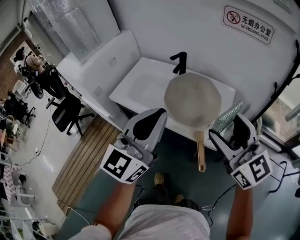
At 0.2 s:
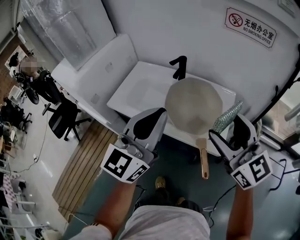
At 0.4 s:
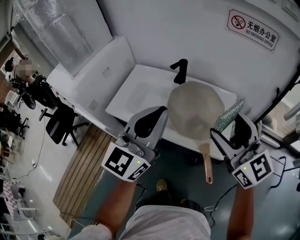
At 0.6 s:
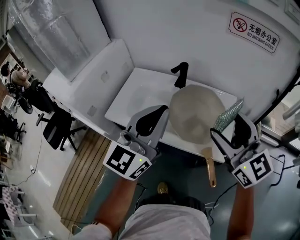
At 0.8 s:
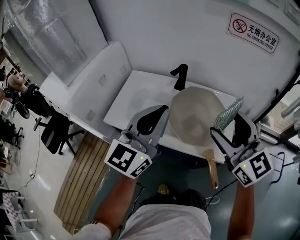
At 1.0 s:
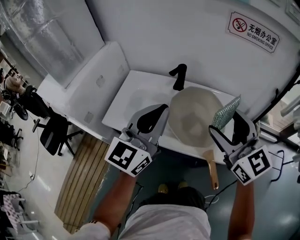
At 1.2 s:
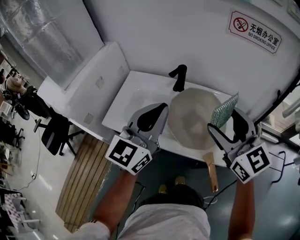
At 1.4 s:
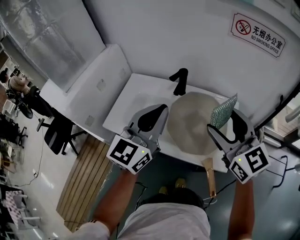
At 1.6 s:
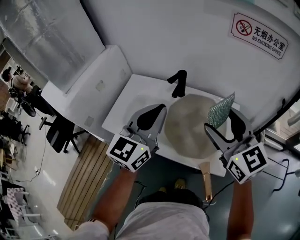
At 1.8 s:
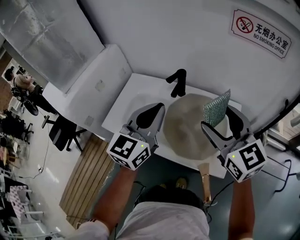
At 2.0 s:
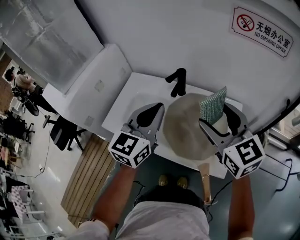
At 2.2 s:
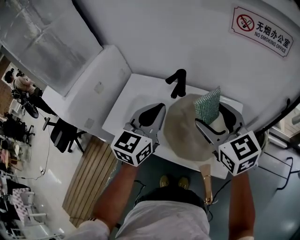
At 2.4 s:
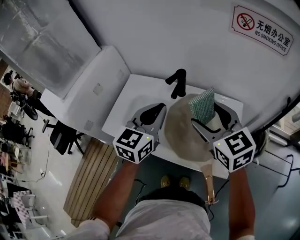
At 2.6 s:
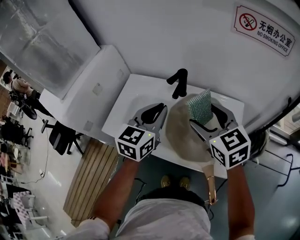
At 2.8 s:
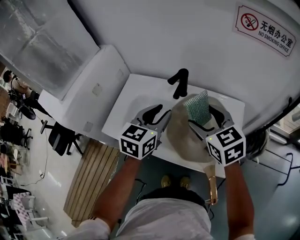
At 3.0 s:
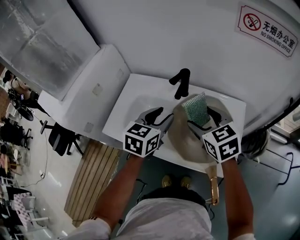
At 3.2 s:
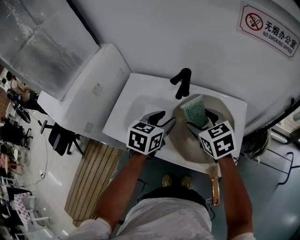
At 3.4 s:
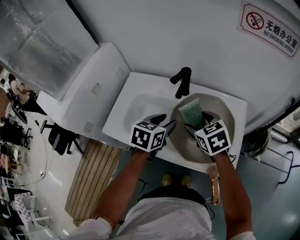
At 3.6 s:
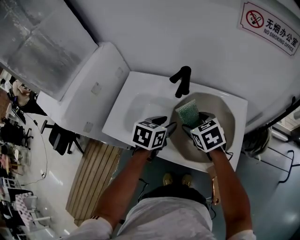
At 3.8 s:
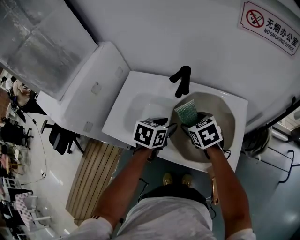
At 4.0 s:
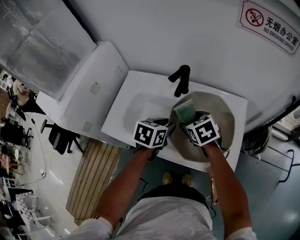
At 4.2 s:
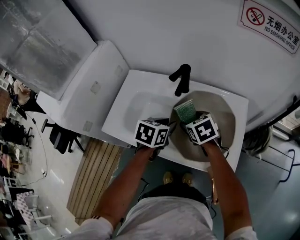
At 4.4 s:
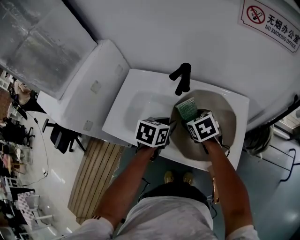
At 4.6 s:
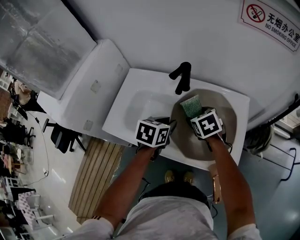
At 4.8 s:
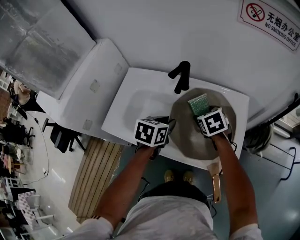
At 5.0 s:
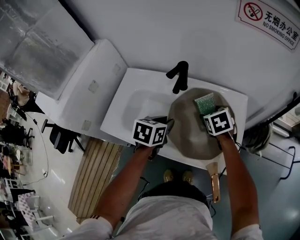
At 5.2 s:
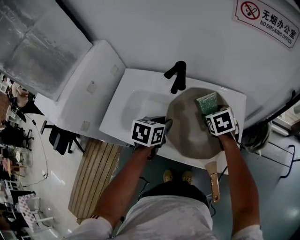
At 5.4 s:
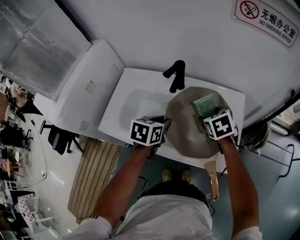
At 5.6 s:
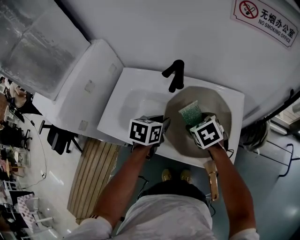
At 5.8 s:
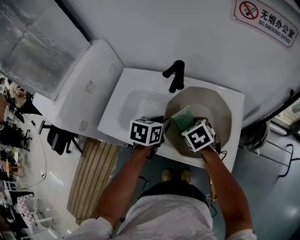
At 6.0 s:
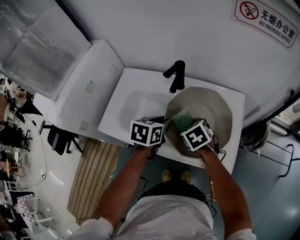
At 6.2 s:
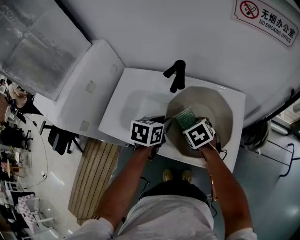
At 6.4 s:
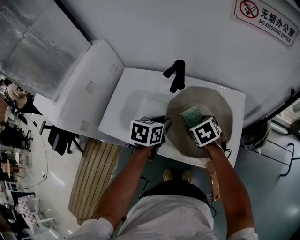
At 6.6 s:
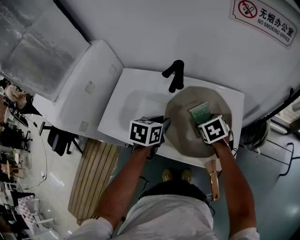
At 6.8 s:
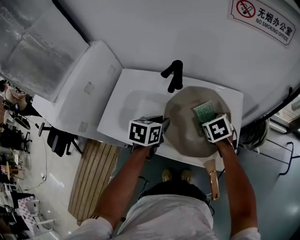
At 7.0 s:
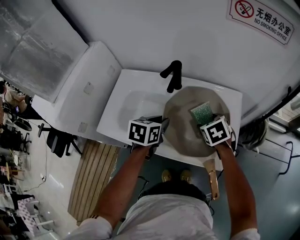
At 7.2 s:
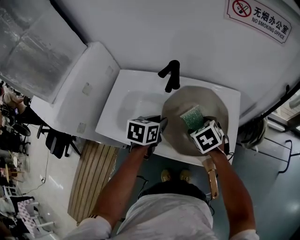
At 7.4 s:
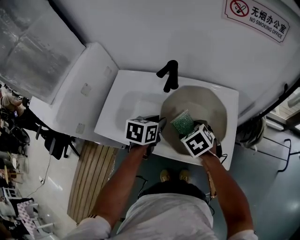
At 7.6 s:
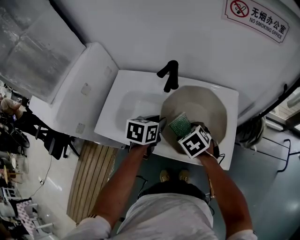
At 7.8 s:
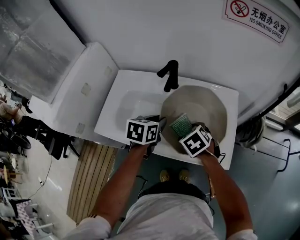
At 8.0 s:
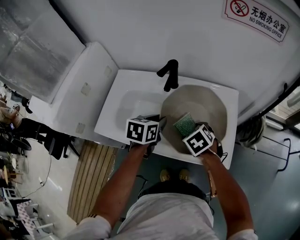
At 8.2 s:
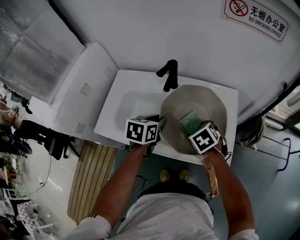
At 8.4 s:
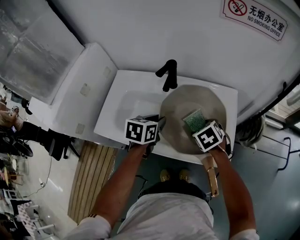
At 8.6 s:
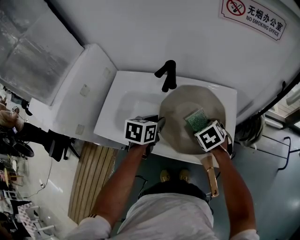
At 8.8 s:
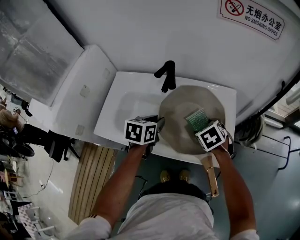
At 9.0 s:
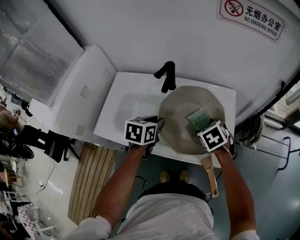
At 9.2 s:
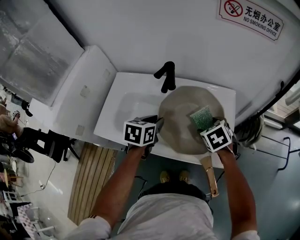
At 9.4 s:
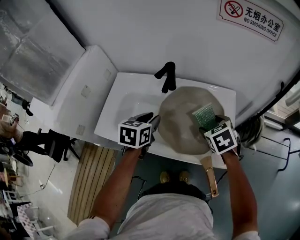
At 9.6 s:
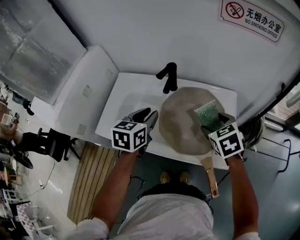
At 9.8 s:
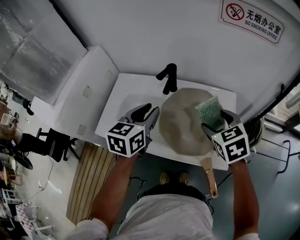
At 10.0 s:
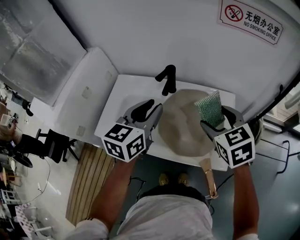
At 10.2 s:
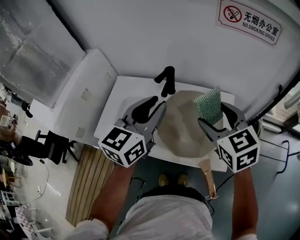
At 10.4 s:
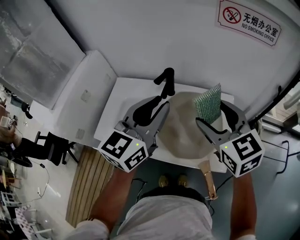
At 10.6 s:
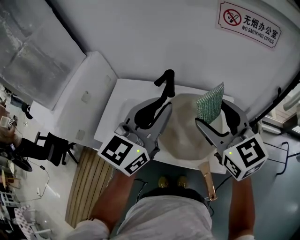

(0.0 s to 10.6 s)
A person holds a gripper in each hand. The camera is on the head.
0.0 s - 1.6 s: The grippers both shift forward by approximately 20 cm.
1.6 s - 3.0 s: The left gripper moves downward and forward, approximately 15 cm, changes its angle by roughly 30 degrees, and opens its fingers; the right gripper travels downward, forward and to the left by roughly 15 cm, and swivels some 30 degrees.
3.0 s - 4.6 s: Both grippers travel together downward, about 10 cm. The left gripper turns by roughly 20 degrees, and closes its fingers. The right gripper turns by about 20 degrees.
4.6 s - 6.0 s: The right gripper travels backward by about 5 cm, and reaches about 10 cm to the right, then returns.
6.0 s - 7.6 s: The right gripper moves approximately 10 cm to the right and comes back.
7.6 s - 9.0 s: The right gripper moves to the right, about 10 cm.
9.0 s - 10.6 s: The two grippers go about 25 cm upward. The left gripper points its fingers some 50 degrees further upward. The right gripper points its fingers about 50 degrees further upward.

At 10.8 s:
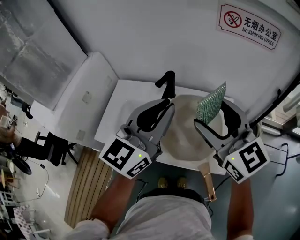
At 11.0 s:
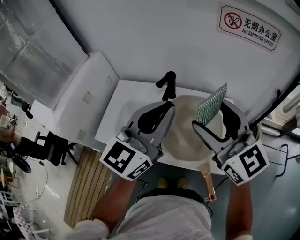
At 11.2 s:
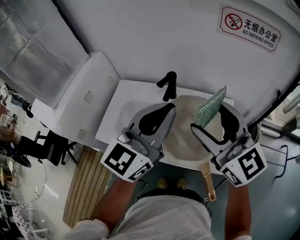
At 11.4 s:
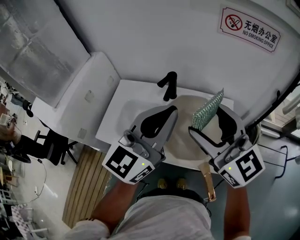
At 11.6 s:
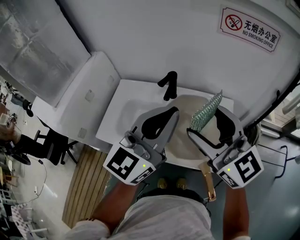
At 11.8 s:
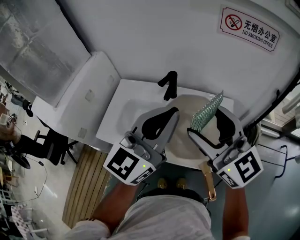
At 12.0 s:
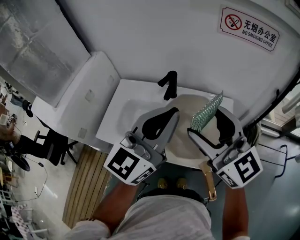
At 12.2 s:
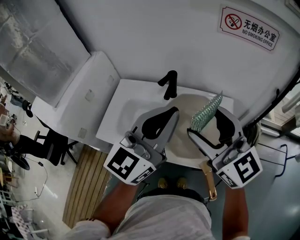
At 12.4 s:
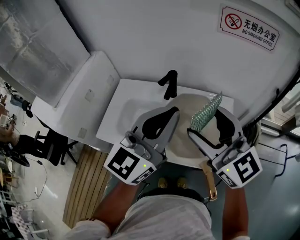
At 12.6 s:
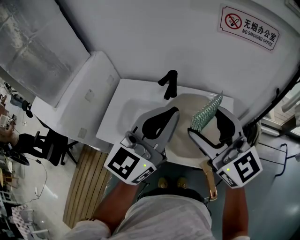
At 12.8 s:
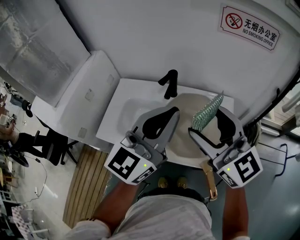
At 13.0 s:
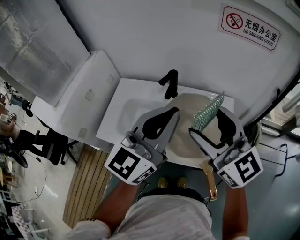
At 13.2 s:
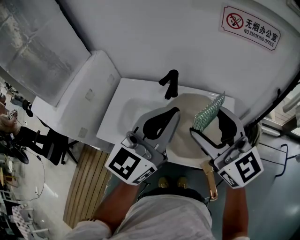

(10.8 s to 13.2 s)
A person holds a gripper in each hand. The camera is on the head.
10.8 s - 12.0 s: The grippers make only small movements.
12.0 s - 13.2 s: Neither gripper changes place.

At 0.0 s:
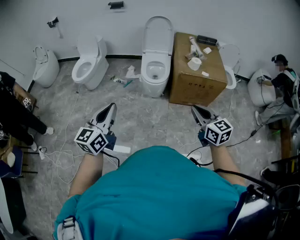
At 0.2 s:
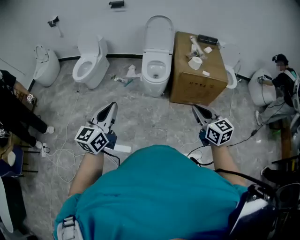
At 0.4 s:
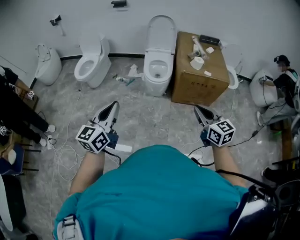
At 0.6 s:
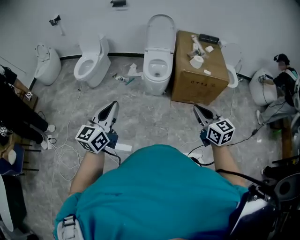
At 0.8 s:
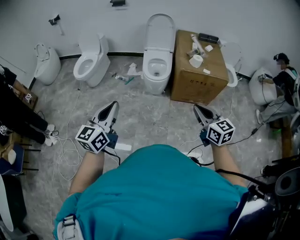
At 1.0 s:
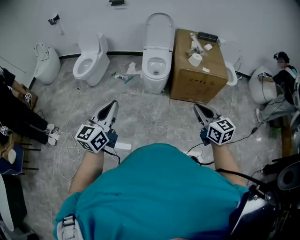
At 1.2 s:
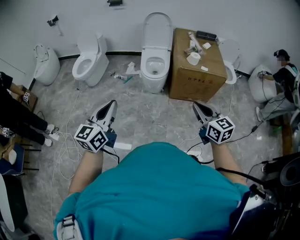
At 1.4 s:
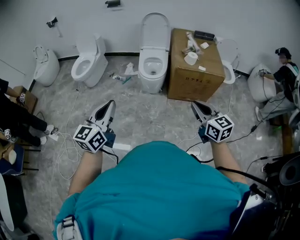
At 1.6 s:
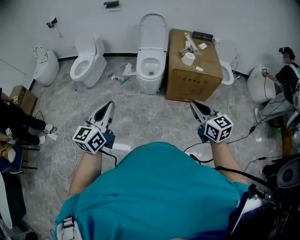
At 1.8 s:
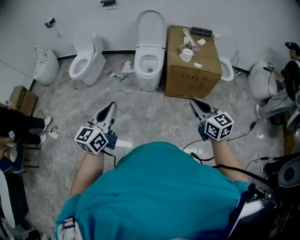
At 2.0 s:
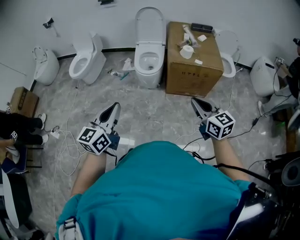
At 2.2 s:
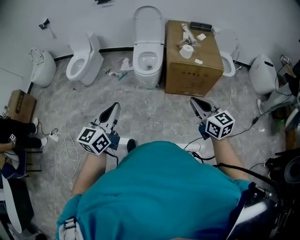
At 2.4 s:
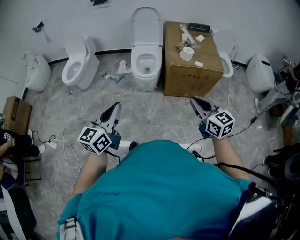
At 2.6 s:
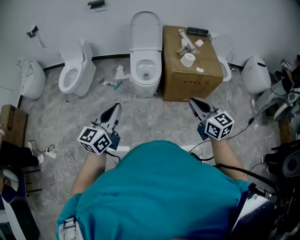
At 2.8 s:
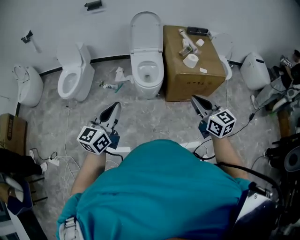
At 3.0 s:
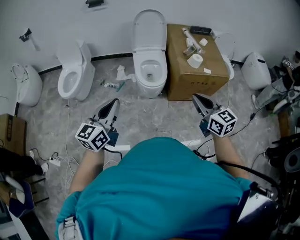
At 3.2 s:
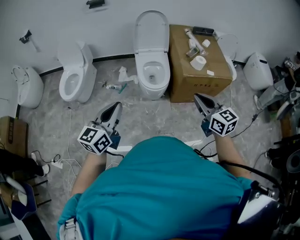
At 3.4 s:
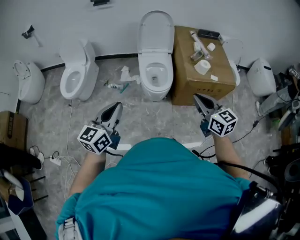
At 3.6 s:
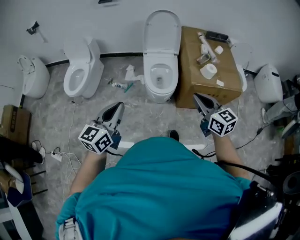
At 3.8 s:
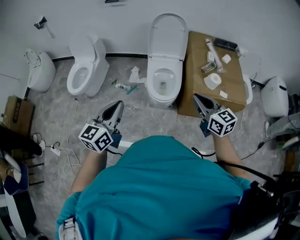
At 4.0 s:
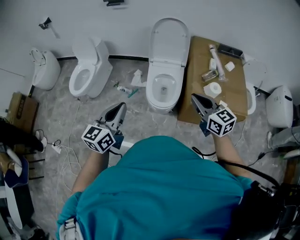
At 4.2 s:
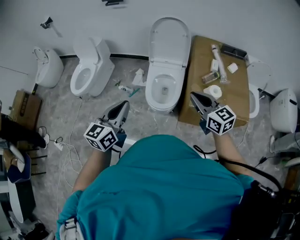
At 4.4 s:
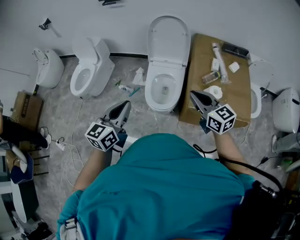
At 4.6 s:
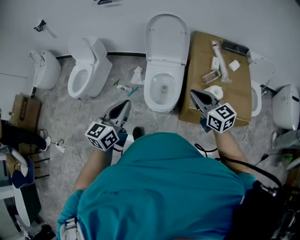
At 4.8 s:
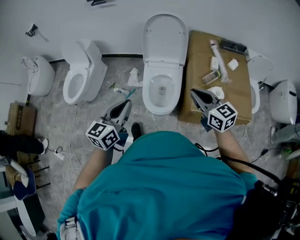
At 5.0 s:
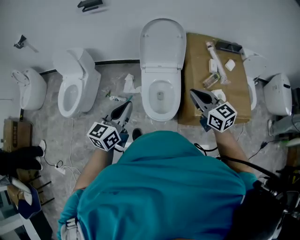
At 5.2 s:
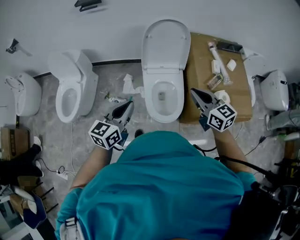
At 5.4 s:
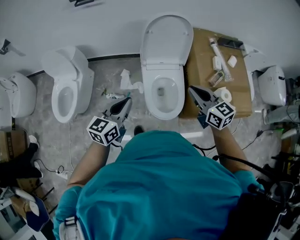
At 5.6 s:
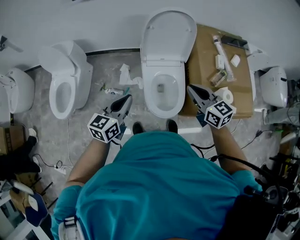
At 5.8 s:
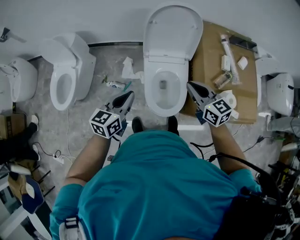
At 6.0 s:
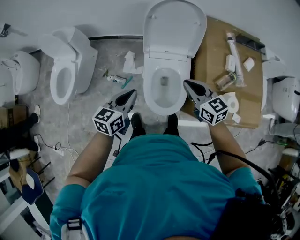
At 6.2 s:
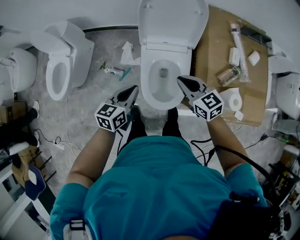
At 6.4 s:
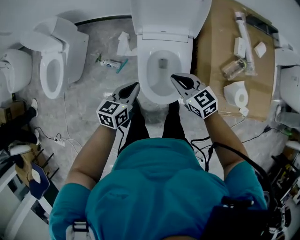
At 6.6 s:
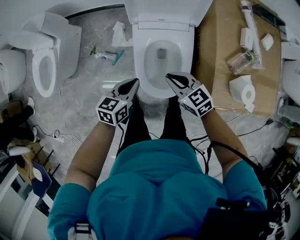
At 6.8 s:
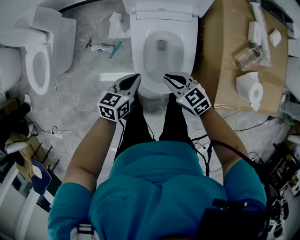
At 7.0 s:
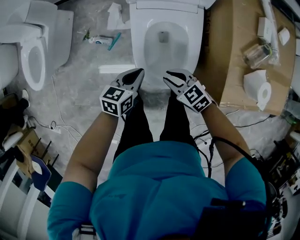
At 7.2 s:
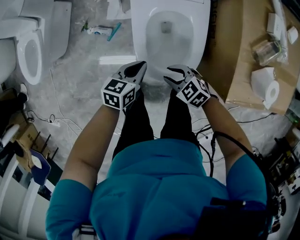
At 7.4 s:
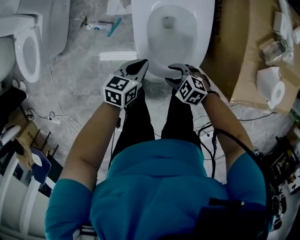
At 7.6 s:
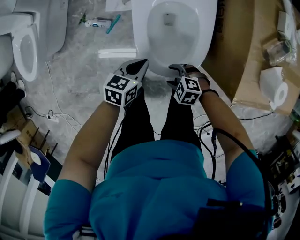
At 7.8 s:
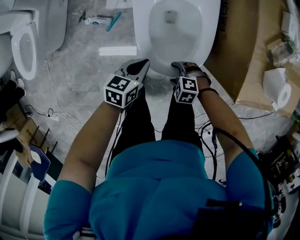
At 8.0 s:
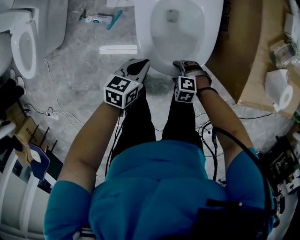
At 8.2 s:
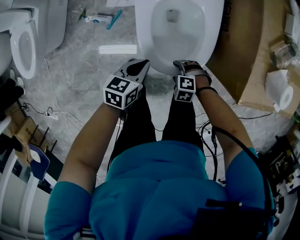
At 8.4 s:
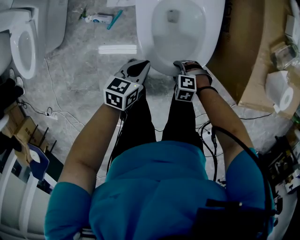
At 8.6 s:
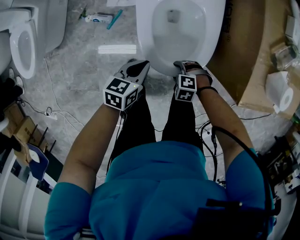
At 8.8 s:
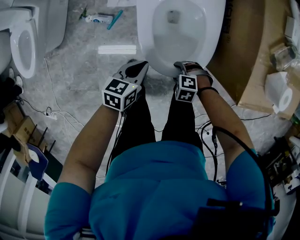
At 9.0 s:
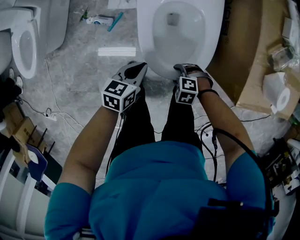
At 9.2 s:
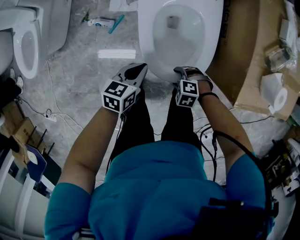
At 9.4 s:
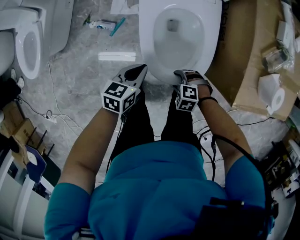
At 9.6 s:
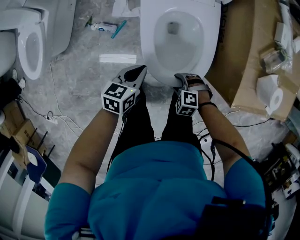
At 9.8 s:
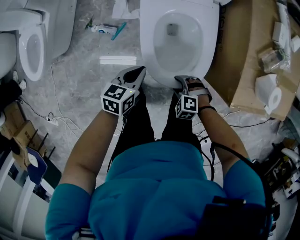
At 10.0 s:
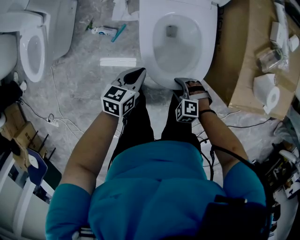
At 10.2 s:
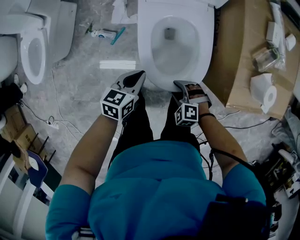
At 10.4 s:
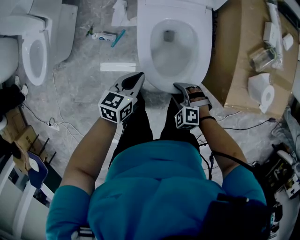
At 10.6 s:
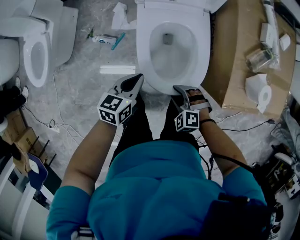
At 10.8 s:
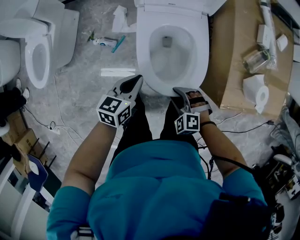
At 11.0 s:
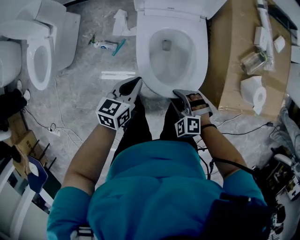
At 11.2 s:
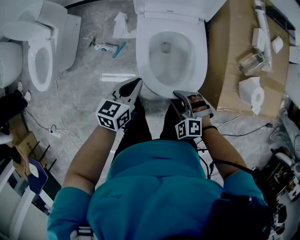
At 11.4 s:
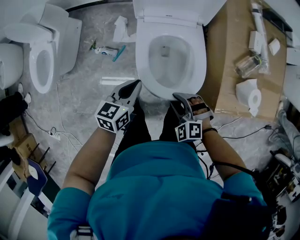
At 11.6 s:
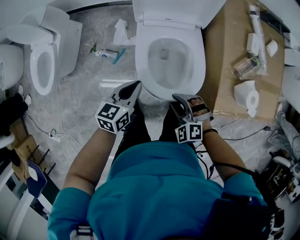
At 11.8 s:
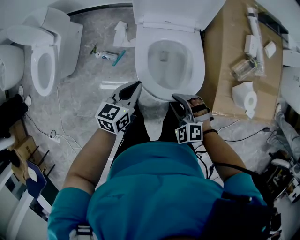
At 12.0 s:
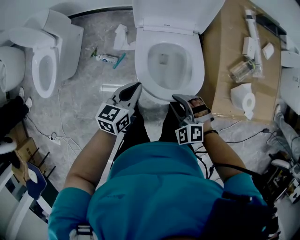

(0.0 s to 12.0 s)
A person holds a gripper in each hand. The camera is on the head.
0.0 s - 1.6 s: The two grippers go some 5 cm to the right.
1.6 s - 3.0 s: The two grippers go some 30 cm forward and to the left.
3.0 s - 4.4 s: Both grippers move forward and to the right, approximately 35 cm. The right gripper rotates about 20 degrees.
4.4 s - 6.0 s: The left gripper heads forward and downward, covering about 35 cm, and changes its angle by approximately 20 degrees, while the right gripper heads forward, downward and to the left, covering roughly 35 cm.
6.0 s - 7.6 s: The grippers both shift downward by about 40 cm. The left gripper swivels about 20 degrees, while the right gripper tilts its fingers some 40 degrees downward, and opens its fingers.
7.6 s - 9.0 s: The grippers stay close to where they were, moving slightly.
9.0 s - 10.4 s: The grippers both shift upward by about 10 cm. The right gripper changes its angle by some 20 degrees.
10.4 s - 12.0 s: The right gripper goes some 20 cm upward and forward. The left gripper travels upward by roughly 10 cm.
